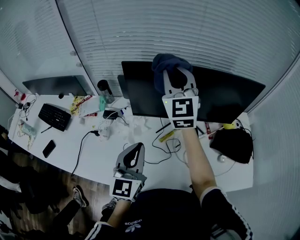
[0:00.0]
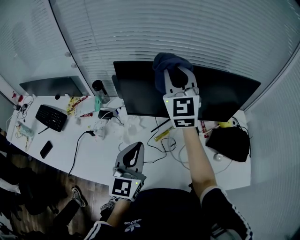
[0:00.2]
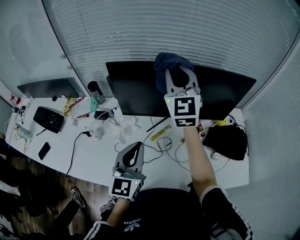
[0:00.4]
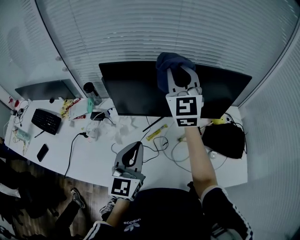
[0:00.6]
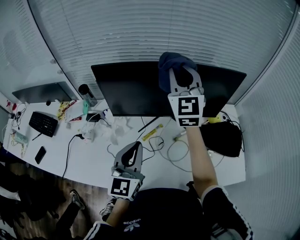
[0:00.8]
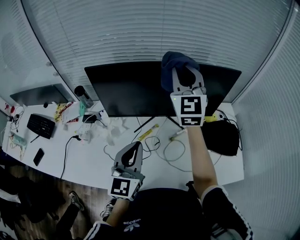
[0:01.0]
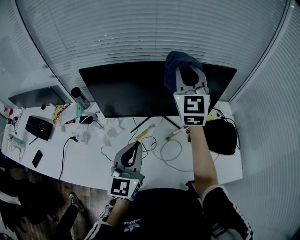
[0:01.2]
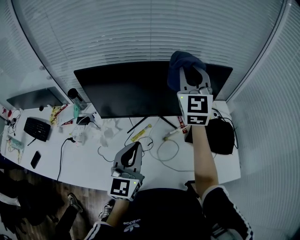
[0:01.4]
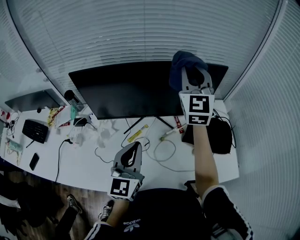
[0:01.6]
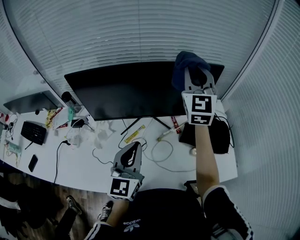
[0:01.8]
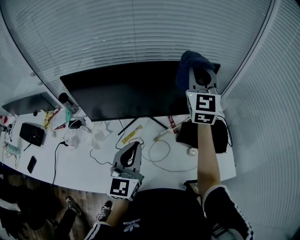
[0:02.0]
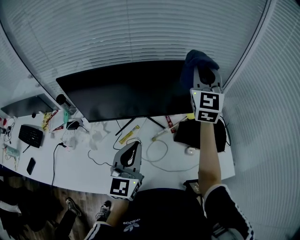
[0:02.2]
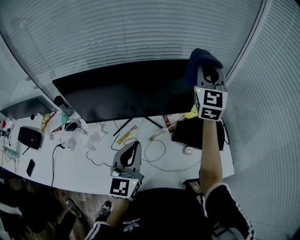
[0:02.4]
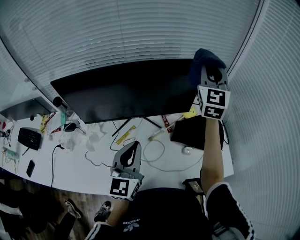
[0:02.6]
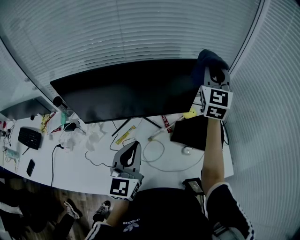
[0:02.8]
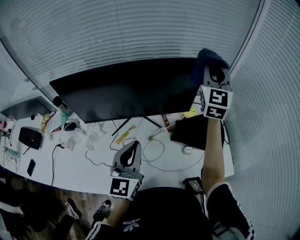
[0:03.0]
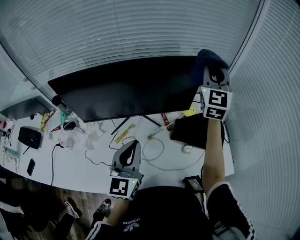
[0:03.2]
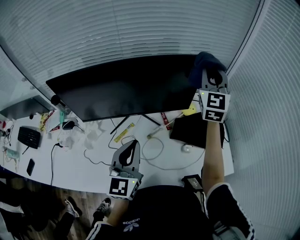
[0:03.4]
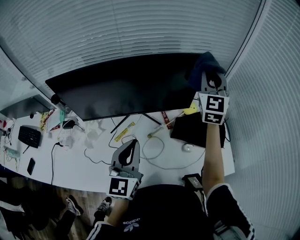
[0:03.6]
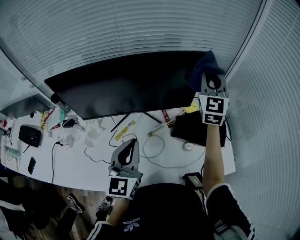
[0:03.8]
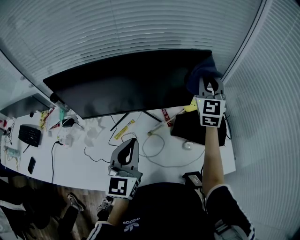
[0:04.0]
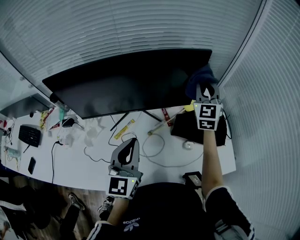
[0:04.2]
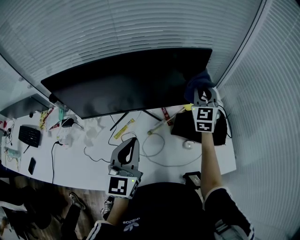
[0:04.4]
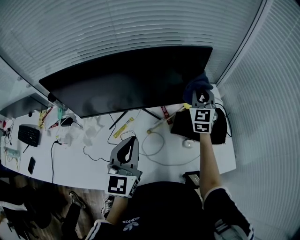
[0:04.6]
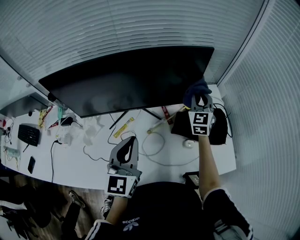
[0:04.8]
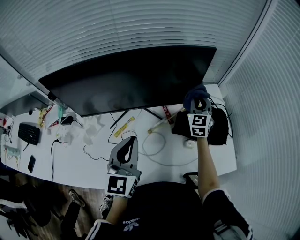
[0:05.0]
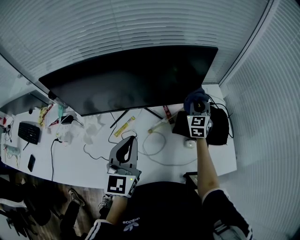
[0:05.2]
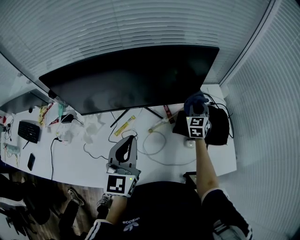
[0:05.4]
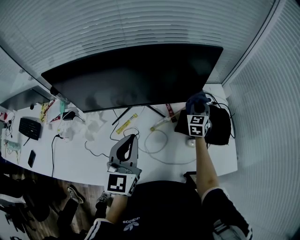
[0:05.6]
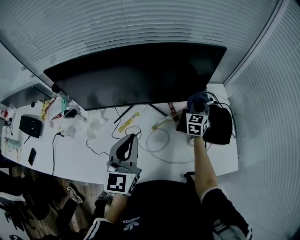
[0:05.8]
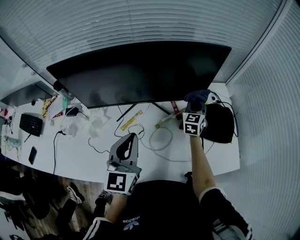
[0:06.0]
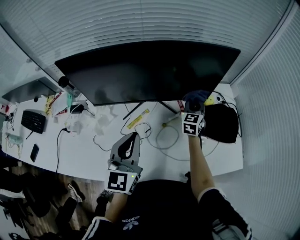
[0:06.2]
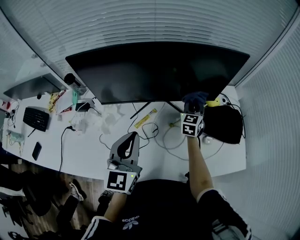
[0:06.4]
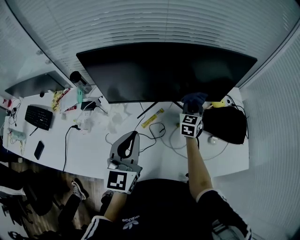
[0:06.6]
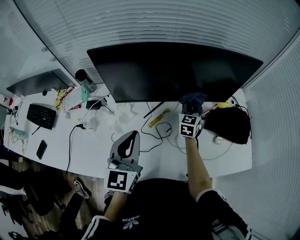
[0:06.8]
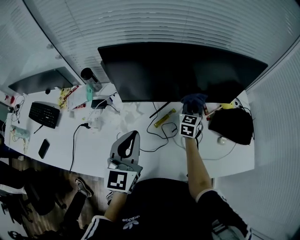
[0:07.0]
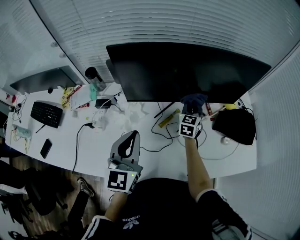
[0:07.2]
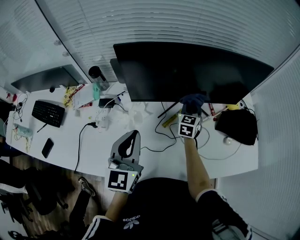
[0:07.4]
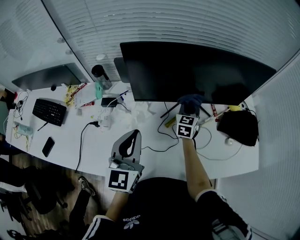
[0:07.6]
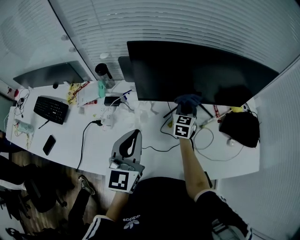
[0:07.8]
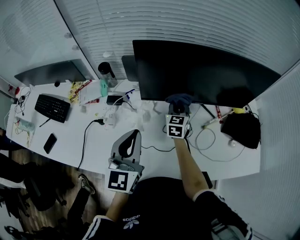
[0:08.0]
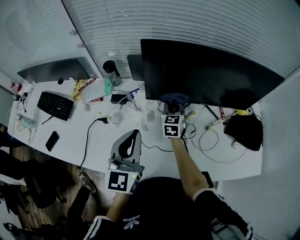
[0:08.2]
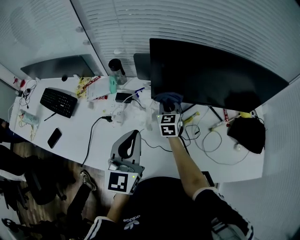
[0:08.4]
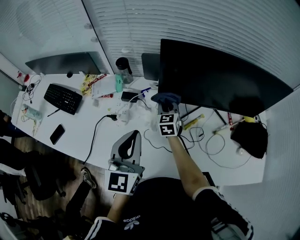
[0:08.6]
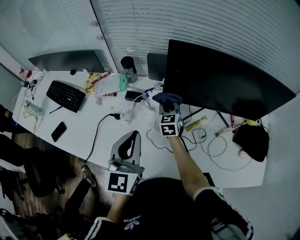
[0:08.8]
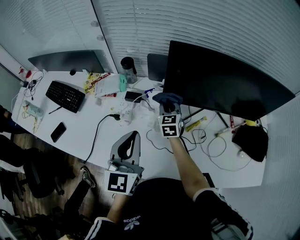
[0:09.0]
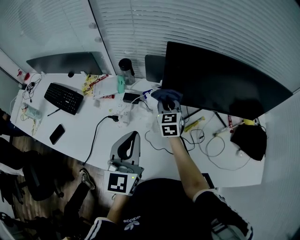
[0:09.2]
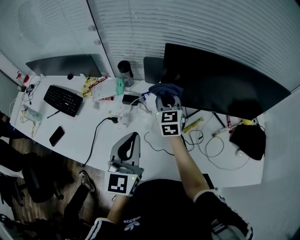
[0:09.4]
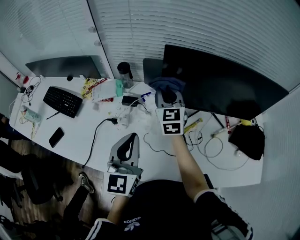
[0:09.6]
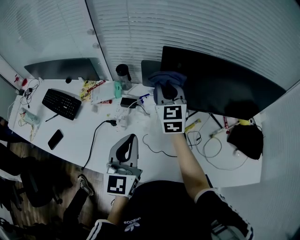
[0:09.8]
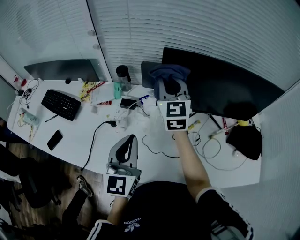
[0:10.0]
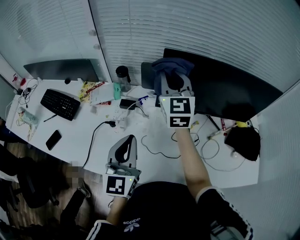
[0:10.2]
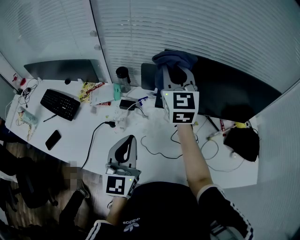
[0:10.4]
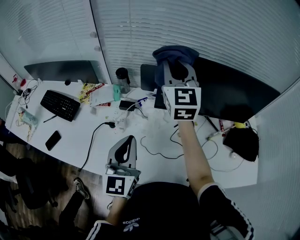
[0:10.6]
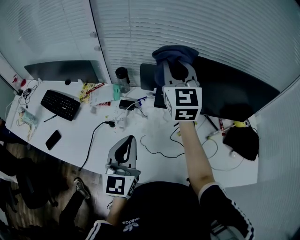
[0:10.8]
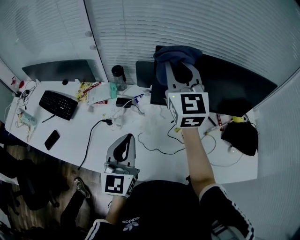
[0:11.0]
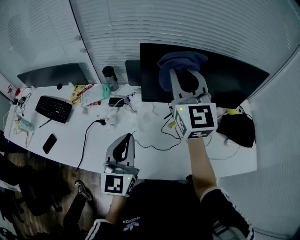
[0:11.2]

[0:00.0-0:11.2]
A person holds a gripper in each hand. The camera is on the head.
0:00.0 to 0:01.6: The right gripper goes some 25 cm to the right. The left gripper goes approximately 15 cm to the right.
0:01.6 to 0:03.2: The right gripper heads to the right, covering about 20 cm; the left gripper travels to the right by roughly 5 cm.
0:03.2 to 0:04.8: The right gripper travels downward by approximately 25 cm.
0:04.8 to 0:06.4: The right gripper travels to the left and downward by about 15 cm; the left gripper moves to the left, roughly 10 cm.
0:06.4 to 0:08.0: The right gripper is displaced to the left by some 30 cm, while the left gripper travels to the left by roughly 20 cm.
0:08.0 to 0:09.6: The left gripper heads to the left, covering about 5 cm. Meanwhile the right gripper moves to the left and upward, about 20 cm, and rotates roughly 20 degrees.
0:09.6 to 0:11.2: The left gripper changes place by roughly 5 cm. The right gripper heads upward, backward and to the right, covering about 25 cm, and swivels about 20 degrees.

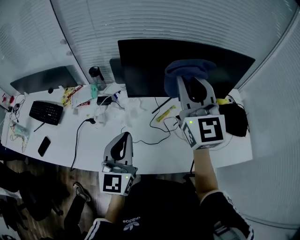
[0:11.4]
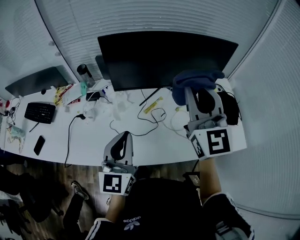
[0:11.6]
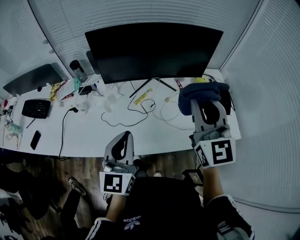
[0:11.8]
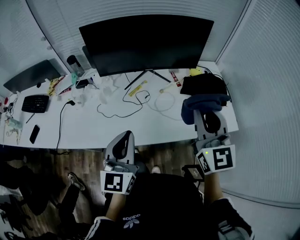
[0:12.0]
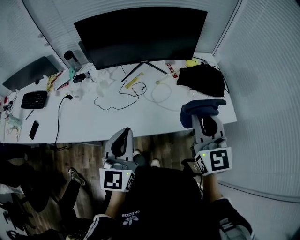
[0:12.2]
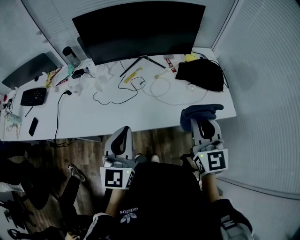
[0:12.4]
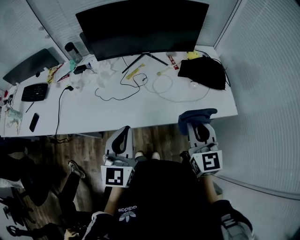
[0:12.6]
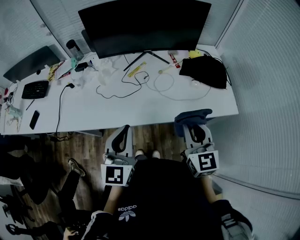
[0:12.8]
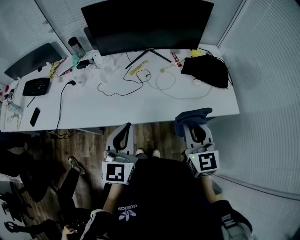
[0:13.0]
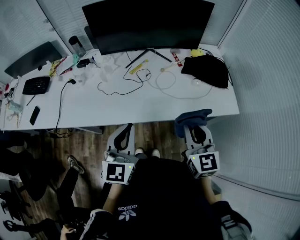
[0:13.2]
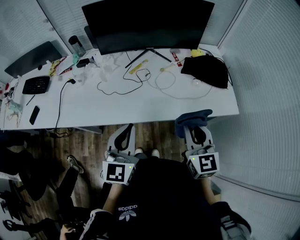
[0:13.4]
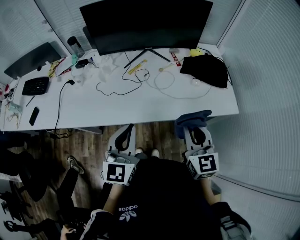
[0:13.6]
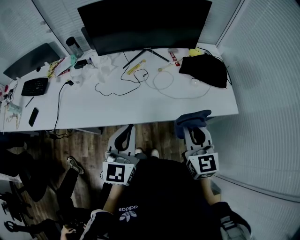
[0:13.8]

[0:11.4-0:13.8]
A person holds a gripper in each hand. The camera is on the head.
0:11.4 to 0:12.6: The right gripper goes some 40 cm backward, to the right and downward, and changes its angle by some 20 degrees. The left gripper heads backward and to the right, covering roughly 25 cm.
0:12.6 to 0:13.8: The grippers stay close to where they were, moving slightly.

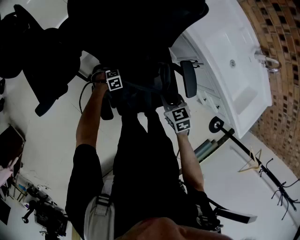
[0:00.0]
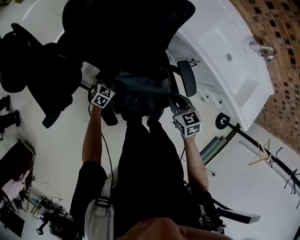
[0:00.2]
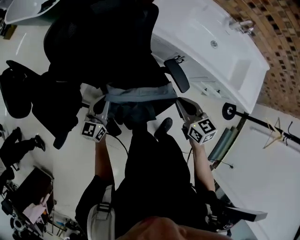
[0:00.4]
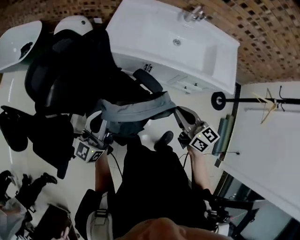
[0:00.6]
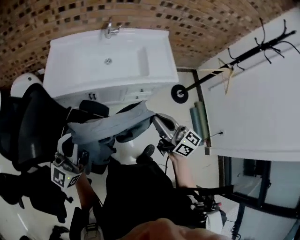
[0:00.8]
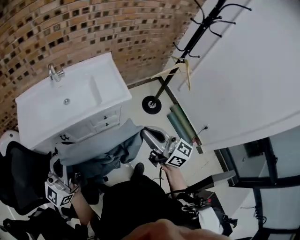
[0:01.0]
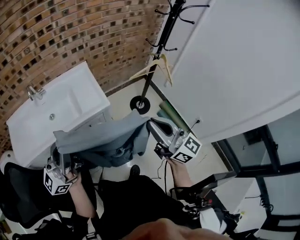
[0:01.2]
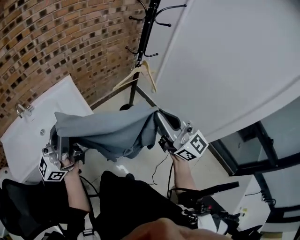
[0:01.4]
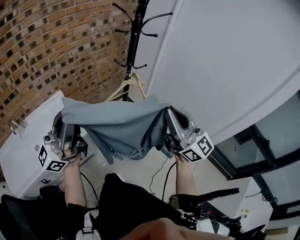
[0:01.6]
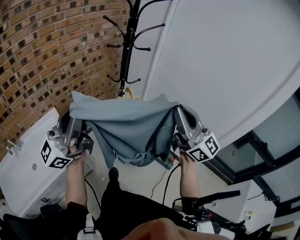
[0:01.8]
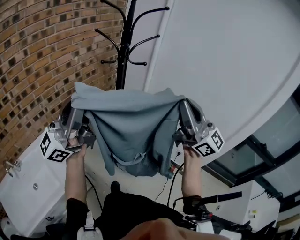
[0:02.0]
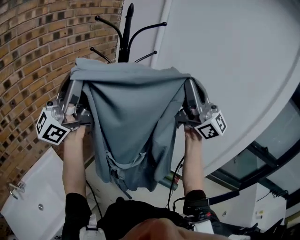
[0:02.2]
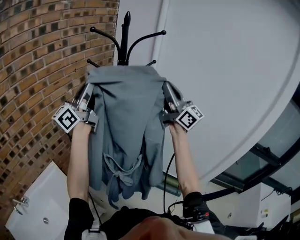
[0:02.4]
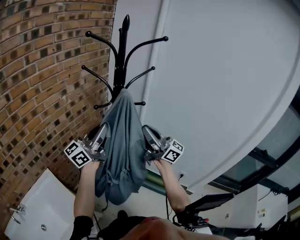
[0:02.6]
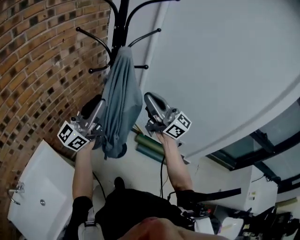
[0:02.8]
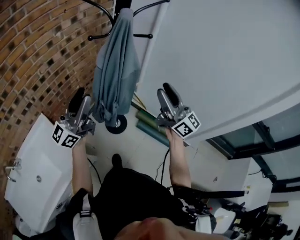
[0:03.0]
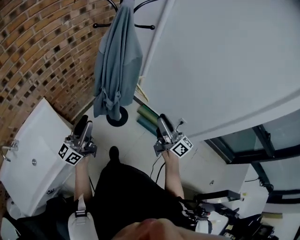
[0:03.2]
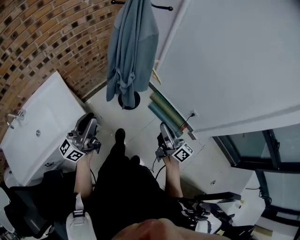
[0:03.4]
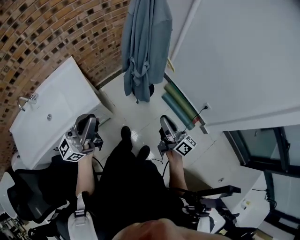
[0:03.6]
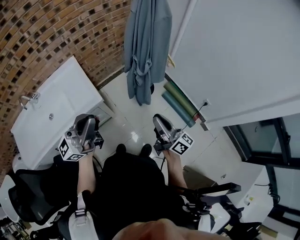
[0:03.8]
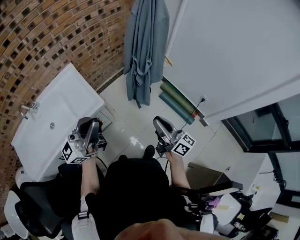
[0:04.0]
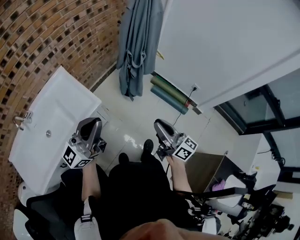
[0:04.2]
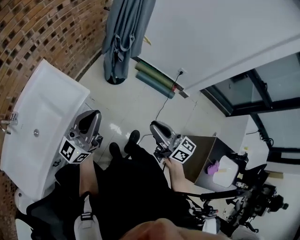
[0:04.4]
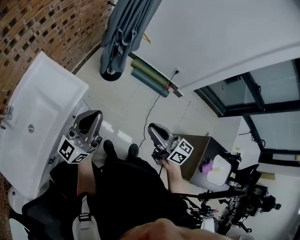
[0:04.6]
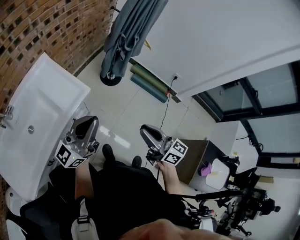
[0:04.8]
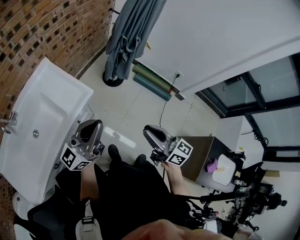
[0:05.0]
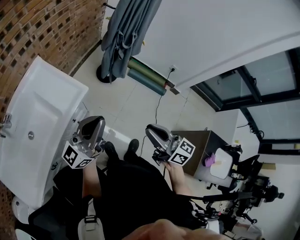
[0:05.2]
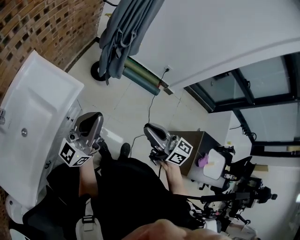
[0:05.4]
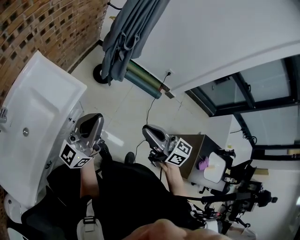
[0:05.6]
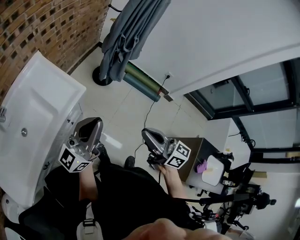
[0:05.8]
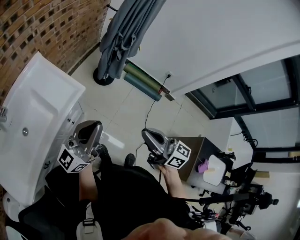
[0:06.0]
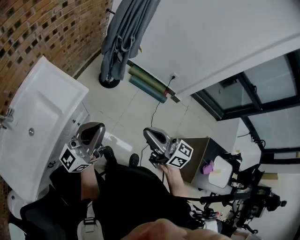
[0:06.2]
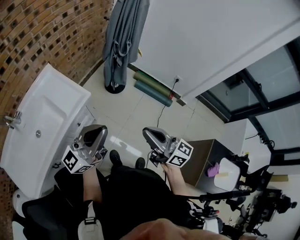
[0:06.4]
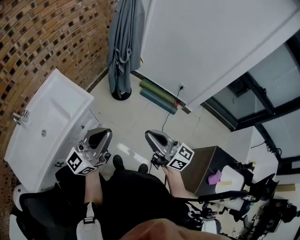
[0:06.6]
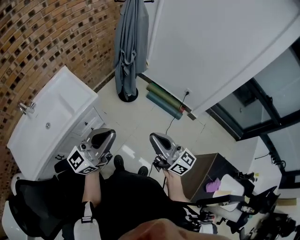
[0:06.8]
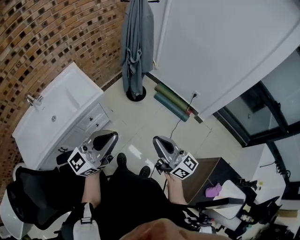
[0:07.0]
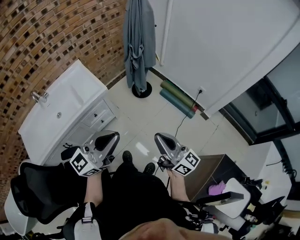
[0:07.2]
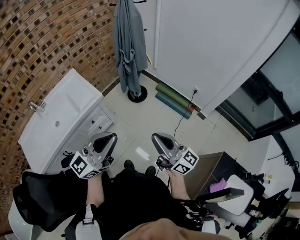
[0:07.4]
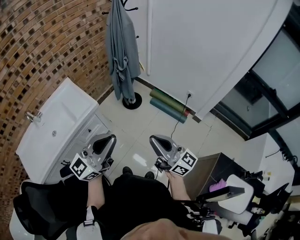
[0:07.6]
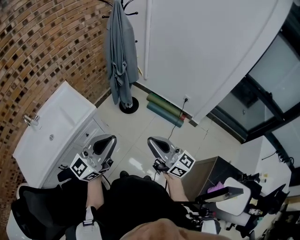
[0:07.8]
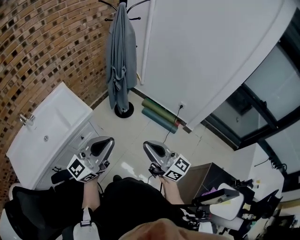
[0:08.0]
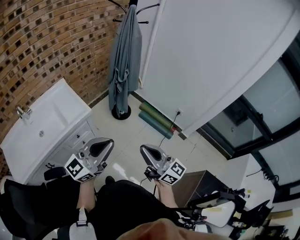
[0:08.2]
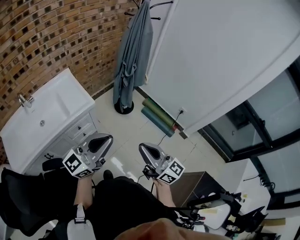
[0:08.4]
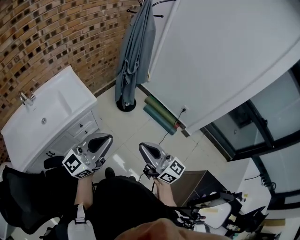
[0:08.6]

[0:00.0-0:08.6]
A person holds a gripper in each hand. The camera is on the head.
0:00.0 to 0:01.4: The pair of grippers is taken roughly 90 cm. The right gripper points its fingers about 70 degrees further upward; the left gripper points its fingers approximately 120 degrees further upward.
0:01.4 to 0:02.8: The two grippers go roughly 40 cm forward. The left gripper turns by some 20 degrees.
0:02.8 to 0:04.4: The pair of grippers is taken backward, about 50 cm. The two grippers go approximately 20 cm downward. The right gripper changes its angle by some 40 degrees, and opens, then closes once more.
0:04.4 to 0:05.8: The left gripper ends up some 5 cm from where it was. The right gripper heads to the left, covering some 10 cm.
0:05.8 to 0:07.2: Both grippers move to the right and backward, approximately 25 cm. The right gripper turns by roughly 20 degrees, while the left gripper rotates about 20 degrees.
0:07.2 to 0:08.6: The right gripper goes approximately 5 cm to the left. The left gripper shifts some 5 cm forward.

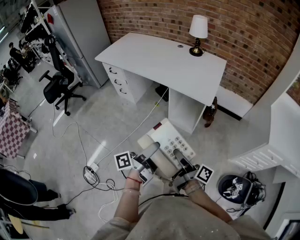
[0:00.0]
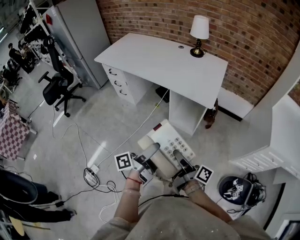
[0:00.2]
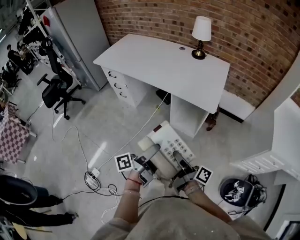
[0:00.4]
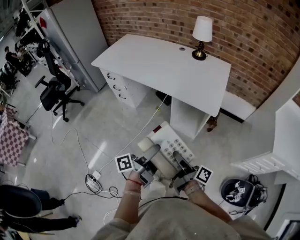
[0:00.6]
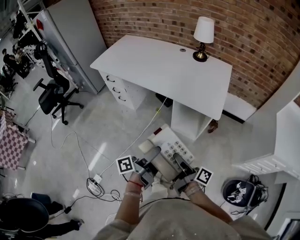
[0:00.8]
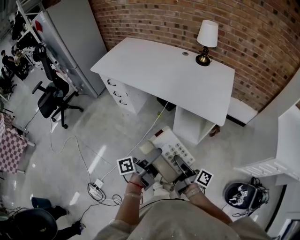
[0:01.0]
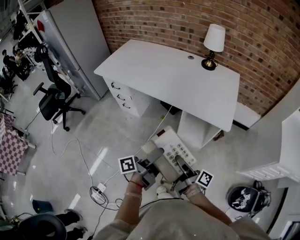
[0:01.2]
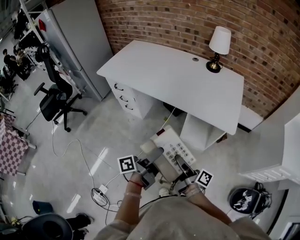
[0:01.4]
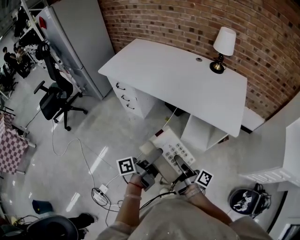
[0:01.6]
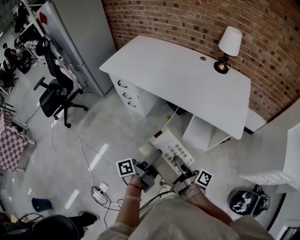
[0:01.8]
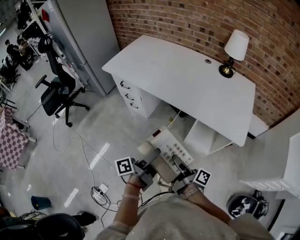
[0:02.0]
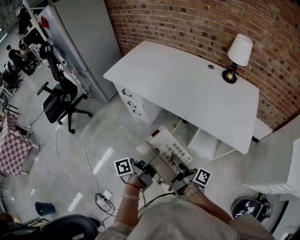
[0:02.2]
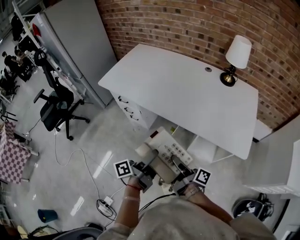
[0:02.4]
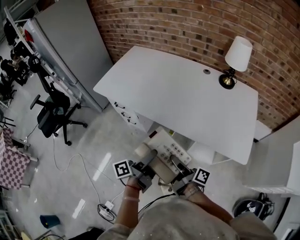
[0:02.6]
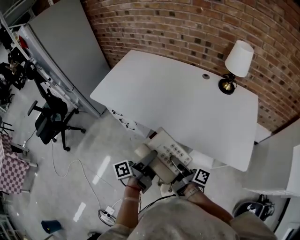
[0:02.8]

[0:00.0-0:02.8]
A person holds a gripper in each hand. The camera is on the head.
0:00.0 to 0:01.4: The left gripper changes place by some 25 cm.
0:01.4 to 0:02.8: The left gripper ends up approximately 25 cm from where it was.
